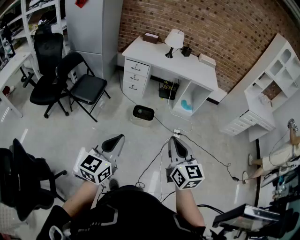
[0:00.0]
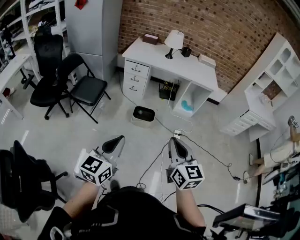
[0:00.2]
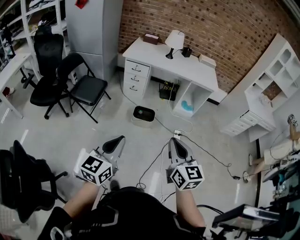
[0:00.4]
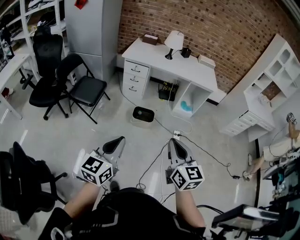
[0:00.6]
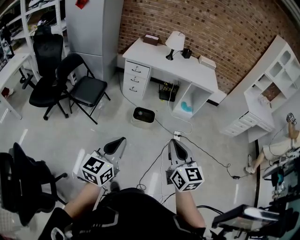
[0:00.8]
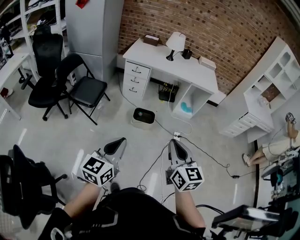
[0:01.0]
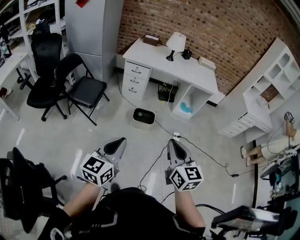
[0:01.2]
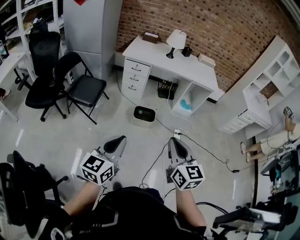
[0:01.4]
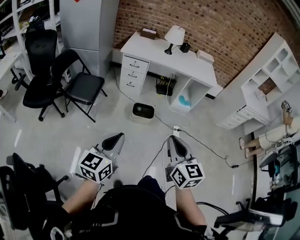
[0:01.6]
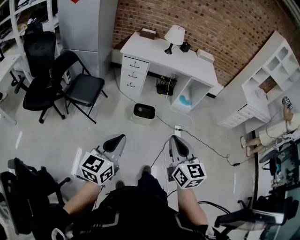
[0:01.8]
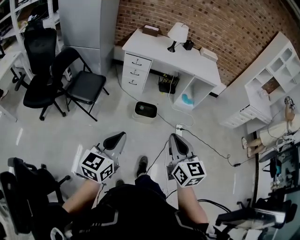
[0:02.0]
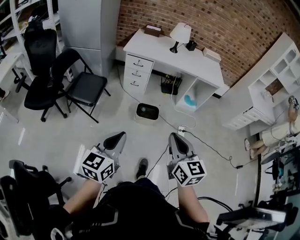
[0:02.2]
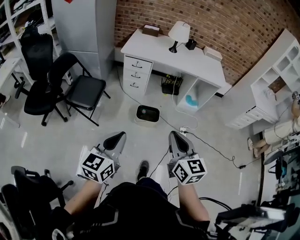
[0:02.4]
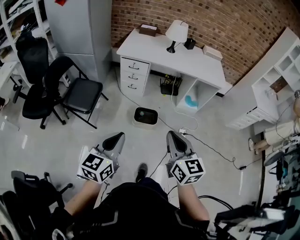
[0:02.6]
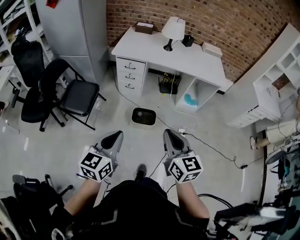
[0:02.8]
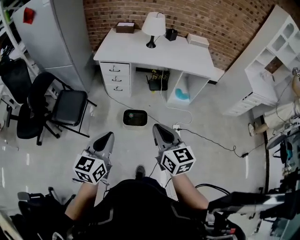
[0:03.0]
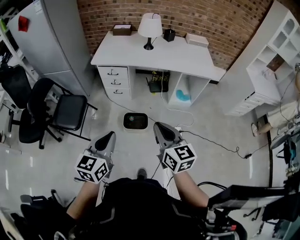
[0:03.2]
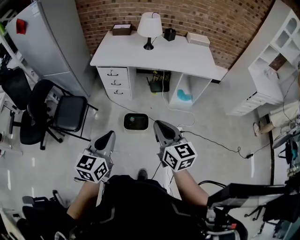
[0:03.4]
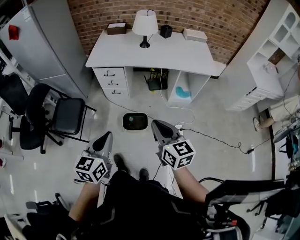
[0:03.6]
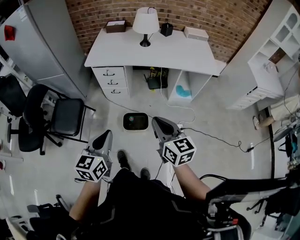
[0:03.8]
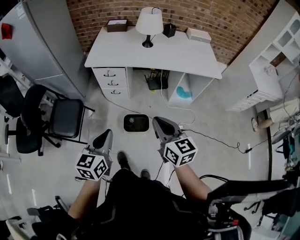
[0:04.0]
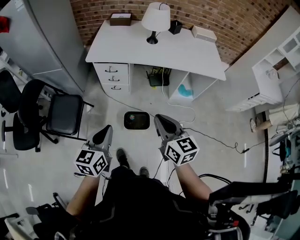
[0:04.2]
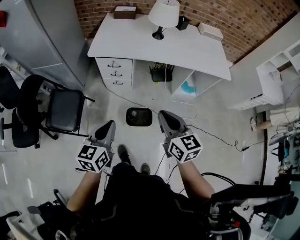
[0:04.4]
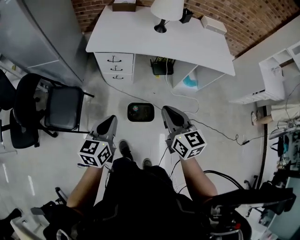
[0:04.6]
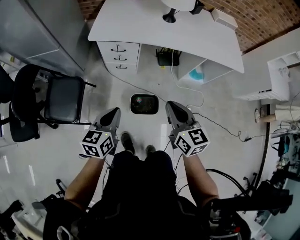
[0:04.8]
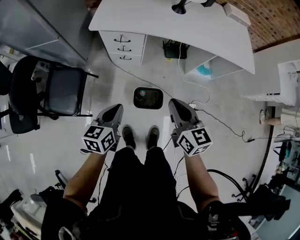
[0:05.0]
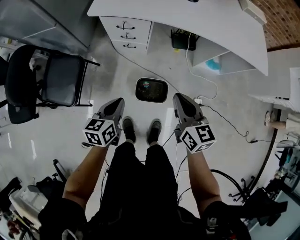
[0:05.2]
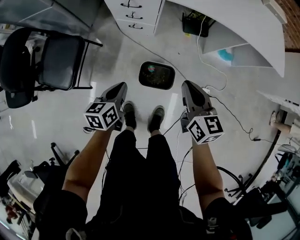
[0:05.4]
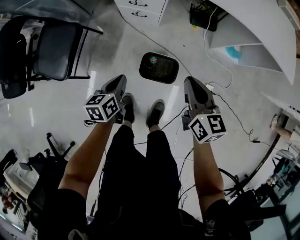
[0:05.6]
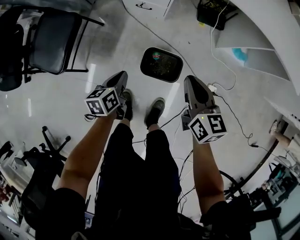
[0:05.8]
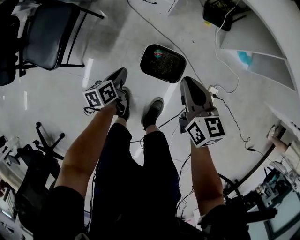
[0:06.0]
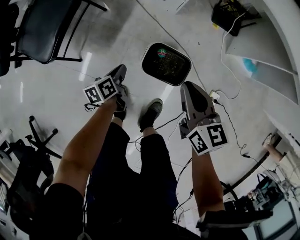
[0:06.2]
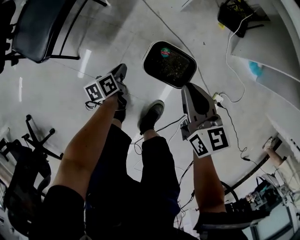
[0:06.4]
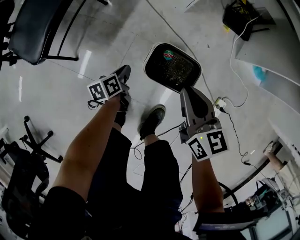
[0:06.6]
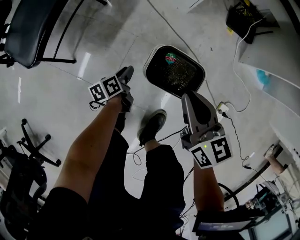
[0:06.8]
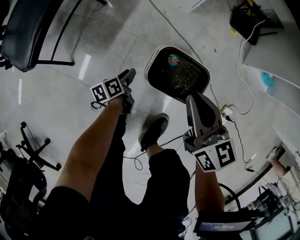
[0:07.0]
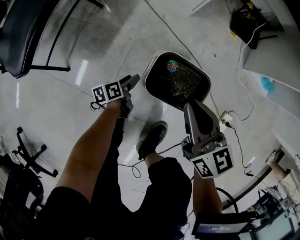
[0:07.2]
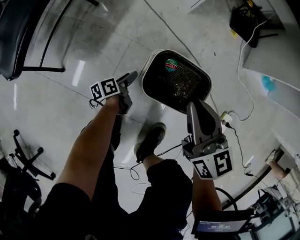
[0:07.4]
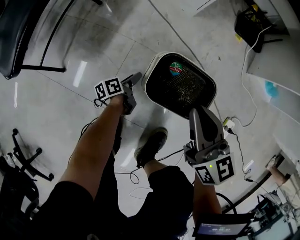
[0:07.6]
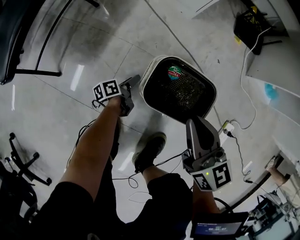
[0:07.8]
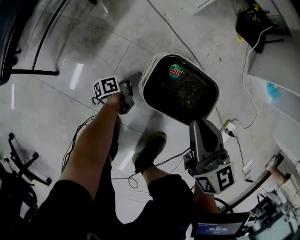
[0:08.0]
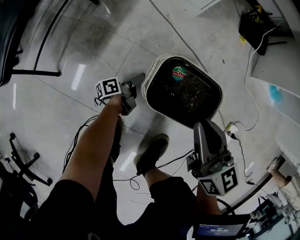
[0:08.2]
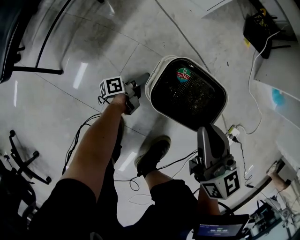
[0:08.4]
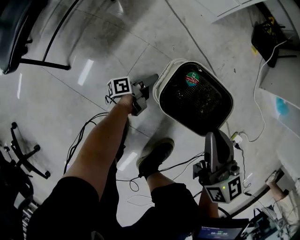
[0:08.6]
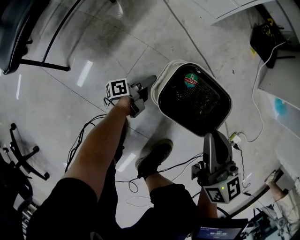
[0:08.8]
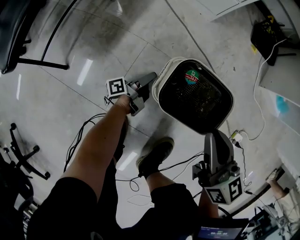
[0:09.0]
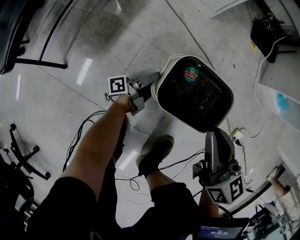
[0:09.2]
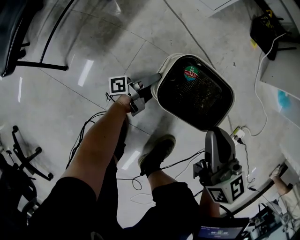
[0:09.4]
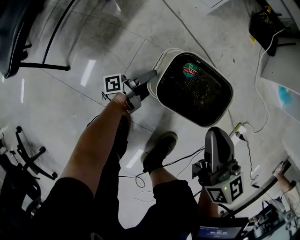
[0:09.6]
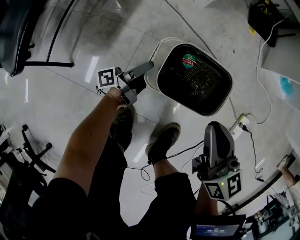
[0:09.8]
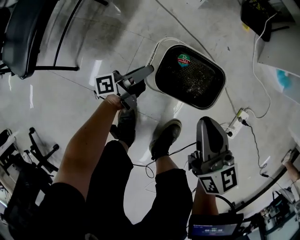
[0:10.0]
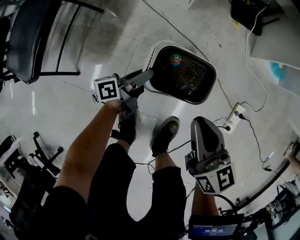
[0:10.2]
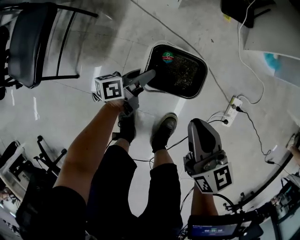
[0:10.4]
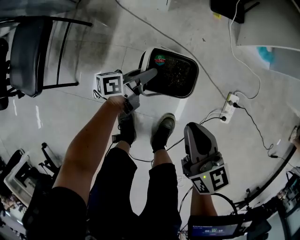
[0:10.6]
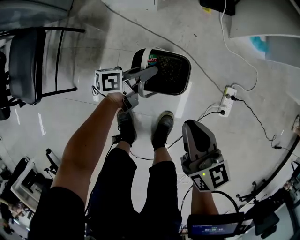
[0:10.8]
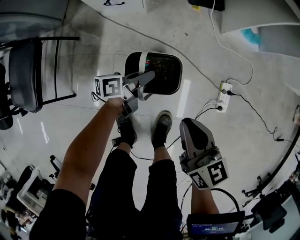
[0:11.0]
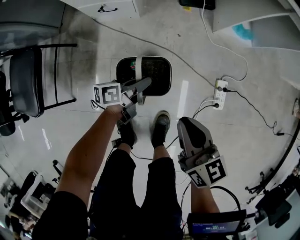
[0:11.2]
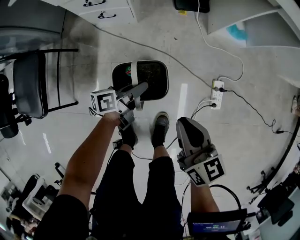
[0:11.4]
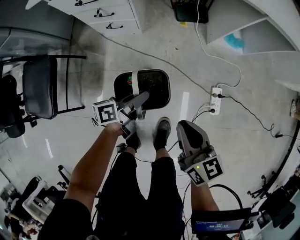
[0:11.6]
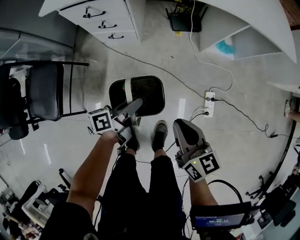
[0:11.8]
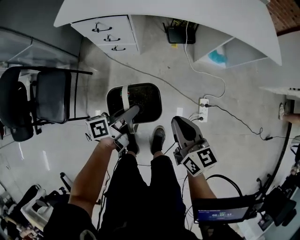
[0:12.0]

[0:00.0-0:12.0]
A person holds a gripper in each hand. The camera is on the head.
0:00.0 to 0:01.6: The two grippers go some 10 cm to the left.
0:01.6 to 0:03.0: The grippers both shift forward by roughly 25 cm.
0:03.0 to 0:04.4: Both grippers move forward, about 25 cm.
0:04.4 to 0:06.0: The two grippers go approximately 50 cm downward. The left gripper twists some 40 degrees counterclockwise, seen from behind; the right gripper changes its angle by about 20 degrees.
0:06.0 to 0:07.6: The right gripper goes approximately 25 cm downward, while the left gripper moves downward, roughly 40 cm, swivels some 30 degrees, and opens its fingers.
0:07.6 to 0:09.0: The left gripper rotates roughly 30 degrees.
0:09.0 to 0:10.4: The left gripper heads upward, covering roughly 25 cm, changes its angle by some 40 degrees, and closes up, while the right gripper shifts approximately 15 cm upward and backward.
0:10.4 to 0:12.0: Both grippers move upward, approximately 30 cm.

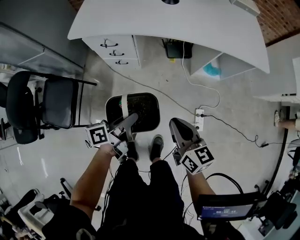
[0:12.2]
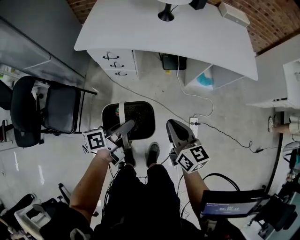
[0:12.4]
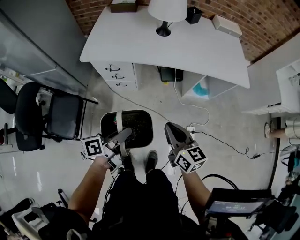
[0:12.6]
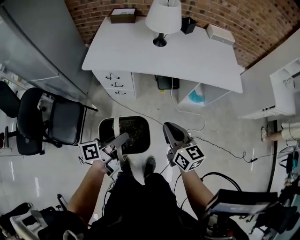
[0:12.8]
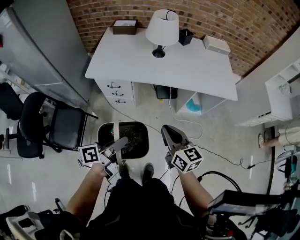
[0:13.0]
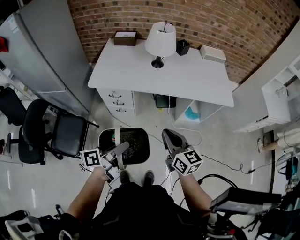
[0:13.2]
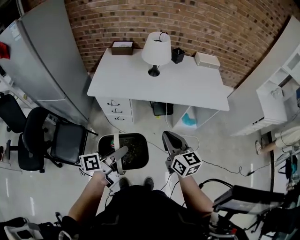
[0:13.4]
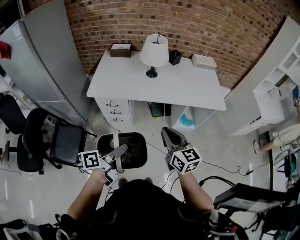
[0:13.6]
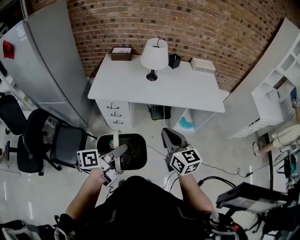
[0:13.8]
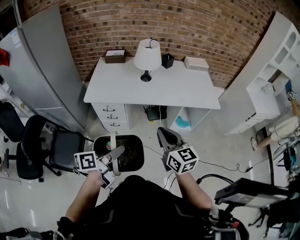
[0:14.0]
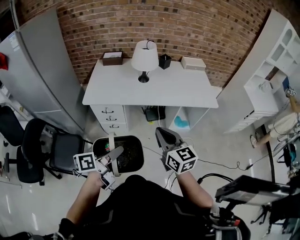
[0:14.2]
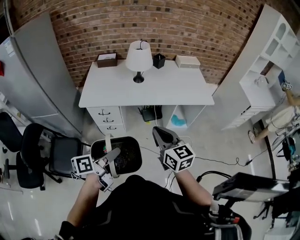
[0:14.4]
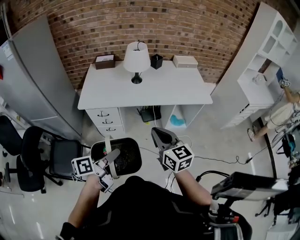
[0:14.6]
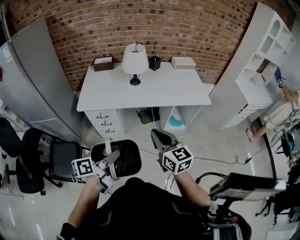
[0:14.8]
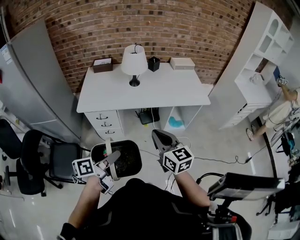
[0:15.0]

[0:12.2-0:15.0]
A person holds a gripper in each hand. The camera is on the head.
0:12.2 to 0:13.6: Both grippers travel together upward, some 25 cm.
0:13.6 to 0:15.0: The right gripper ends up about 5 cm from where it was.

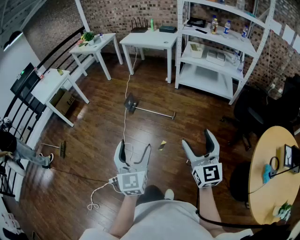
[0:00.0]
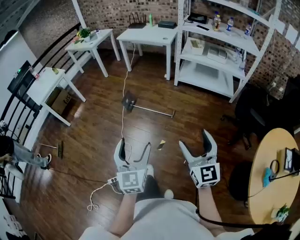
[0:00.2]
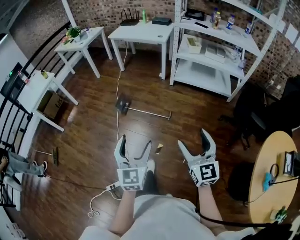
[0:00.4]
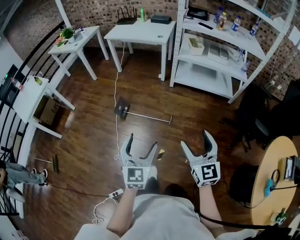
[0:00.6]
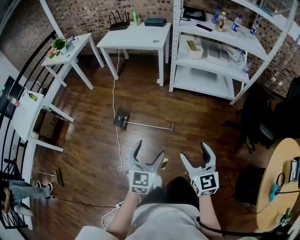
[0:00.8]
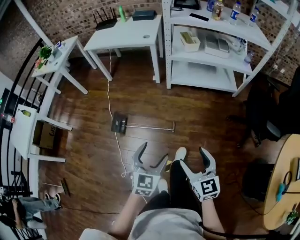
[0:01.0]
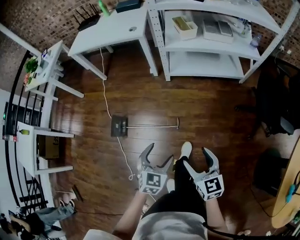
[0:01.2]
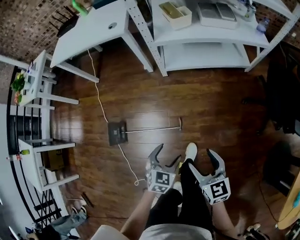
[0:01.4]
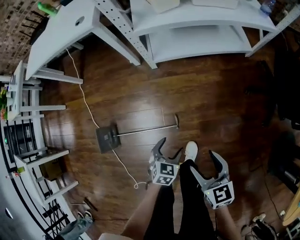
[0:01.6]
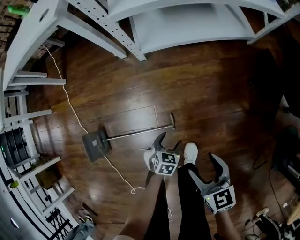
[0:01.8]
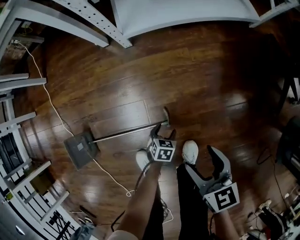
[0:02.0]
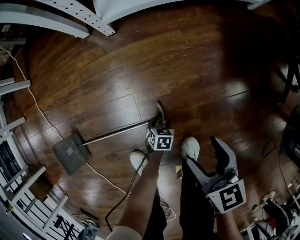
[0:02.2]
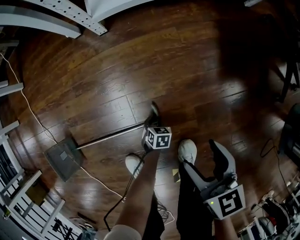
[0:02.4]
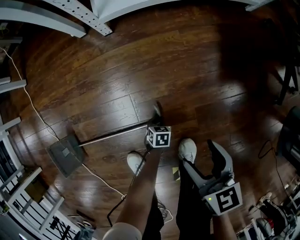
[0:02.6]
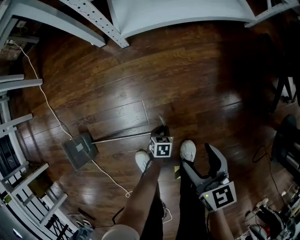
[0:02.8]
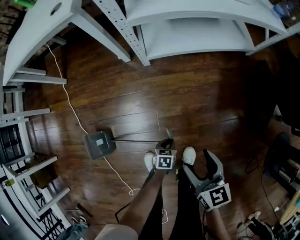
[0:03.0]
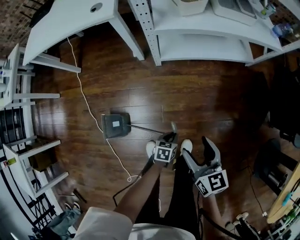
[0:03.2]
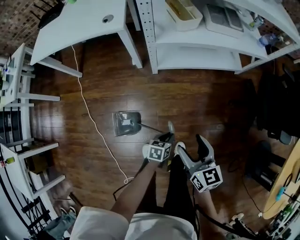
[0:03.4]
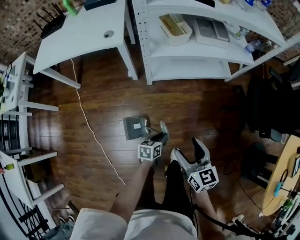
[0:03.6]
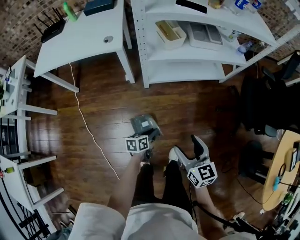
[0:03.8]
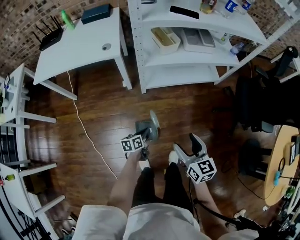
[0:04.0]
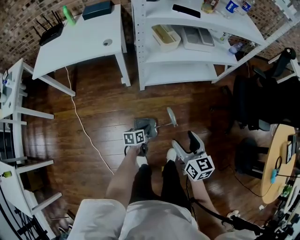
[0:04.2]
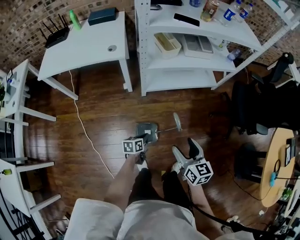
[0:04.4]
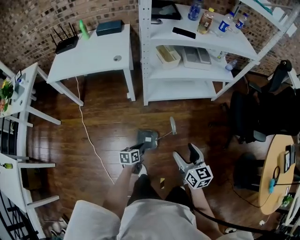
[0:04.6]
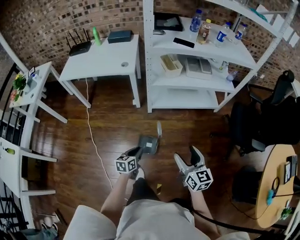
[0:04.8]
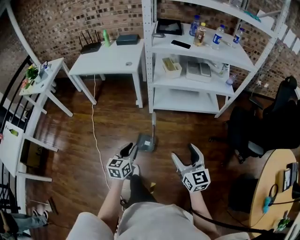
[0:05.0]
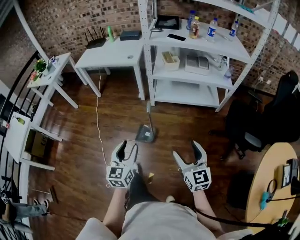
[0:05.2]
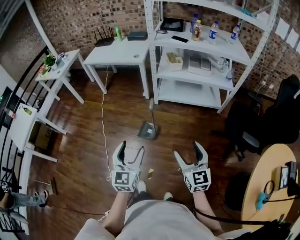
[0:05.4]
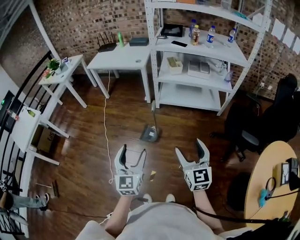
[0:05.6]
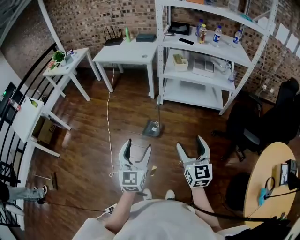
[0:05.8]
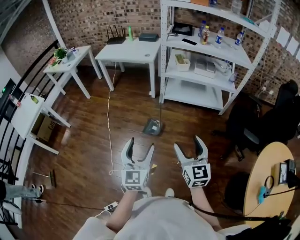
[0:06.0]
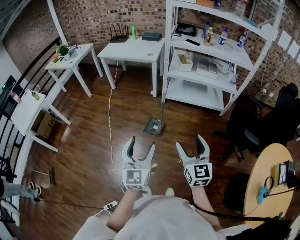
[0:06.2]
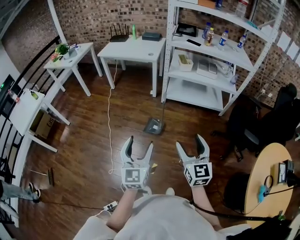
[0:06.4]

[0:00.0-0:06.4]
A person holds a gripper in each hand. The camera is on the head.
0:00.0 to 0:01.6: The two grippers travel together, some 70 cm. The left gripper tips its fingers downward by approximately 50 degrees. The right gripper angles its fingers downward, by some 30 degrees.
0:01.6 to 0:03.2: The right gripper moves to the left and forward, some 10 cm, and reaches about 30 cm downward, then returns. The left gripper goes downward and returns, approximately 50 cm each way, turns by approximately 30 degrees, and closes its fingers.
0:03.2 to 0:04.8: The left gripper heads upward, covering about 30 cm, and rotates some 30 degrees. The right gripper moves upward and backward, some 25 cm.
0:04.8 to 0:06.4: Both grippers move backward and upward, some 40 cm. The left gripper angles its fingers upward, by some 30 degrees, and opens its fingers, while the right gripper turns by some 20 degrees.

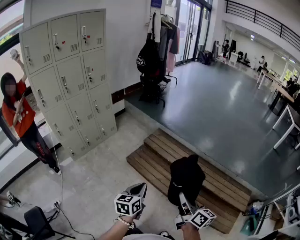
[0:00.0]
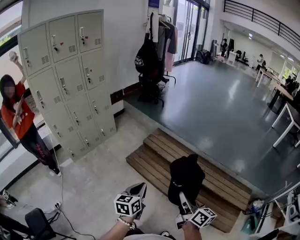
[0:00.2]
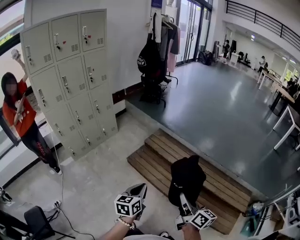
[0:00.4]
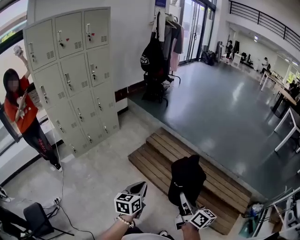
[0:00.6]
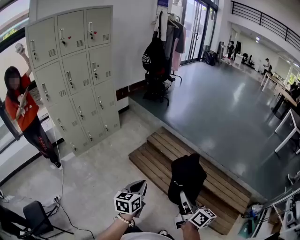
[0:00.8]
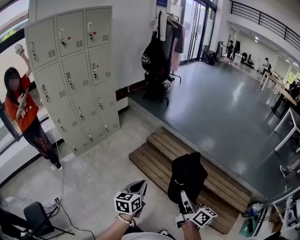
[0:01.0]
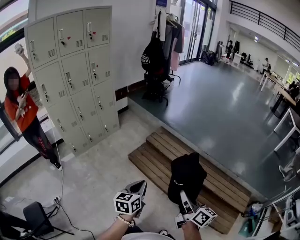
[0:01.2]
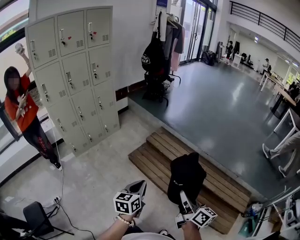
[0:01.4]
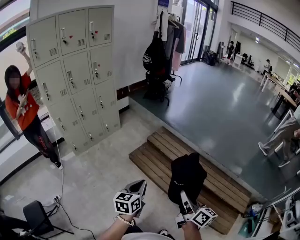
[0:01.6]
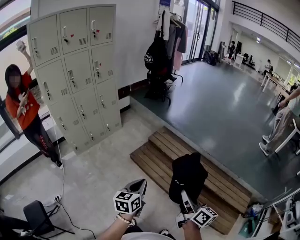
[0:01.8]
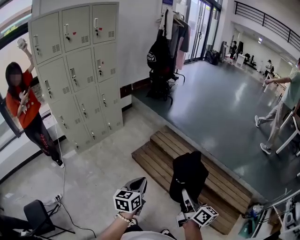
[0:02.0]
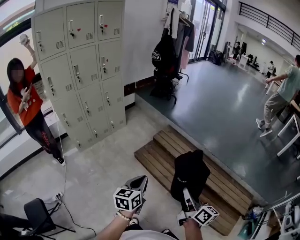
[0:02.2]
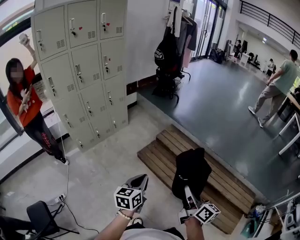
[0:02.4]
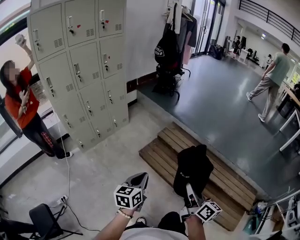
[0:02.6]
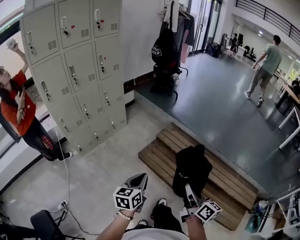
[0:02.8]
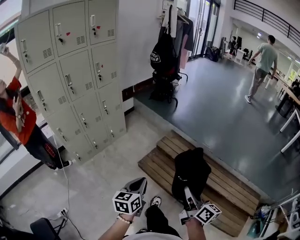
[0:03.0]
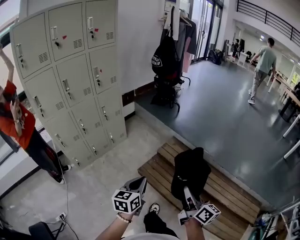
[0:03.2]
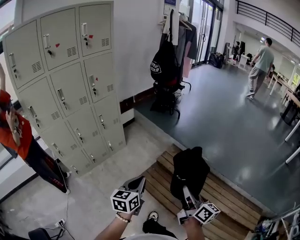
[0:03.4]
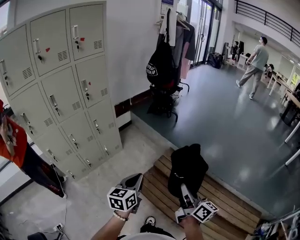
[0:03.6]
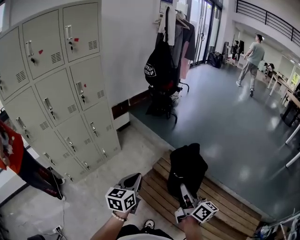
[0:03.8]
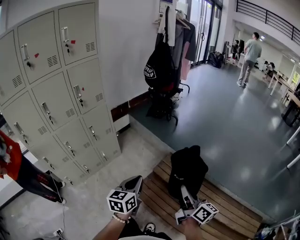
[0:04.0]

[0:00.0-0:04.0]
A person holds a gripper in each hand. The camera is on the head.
0:00.0 to 0:01.4: The grippers stay close to where they were, moving slightly.
0:01.4 to 0:02.6: The two grippers go about 15 cm to the left and forward.
0:02.6 to 0:04.0: The pair of grippers is taken forward, roughly 40 cm.
